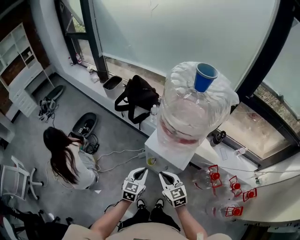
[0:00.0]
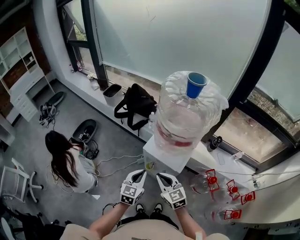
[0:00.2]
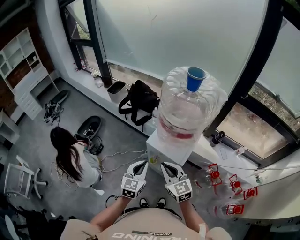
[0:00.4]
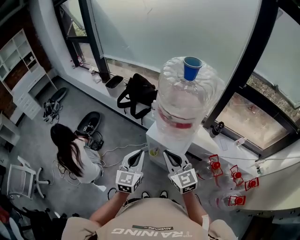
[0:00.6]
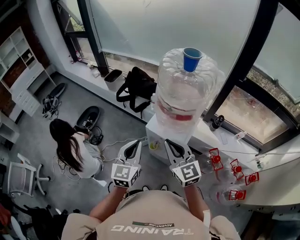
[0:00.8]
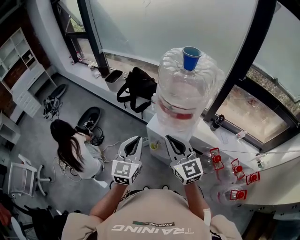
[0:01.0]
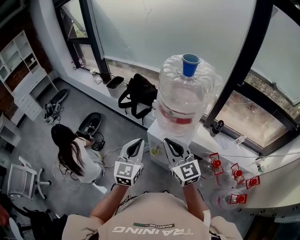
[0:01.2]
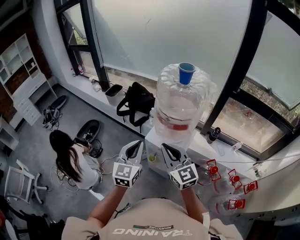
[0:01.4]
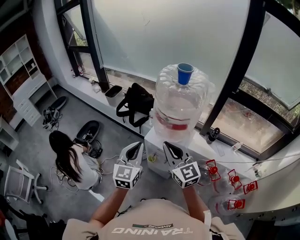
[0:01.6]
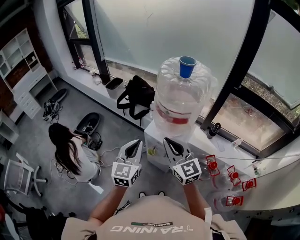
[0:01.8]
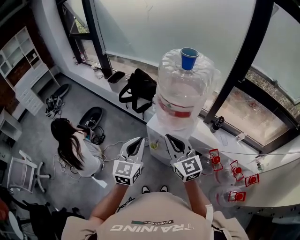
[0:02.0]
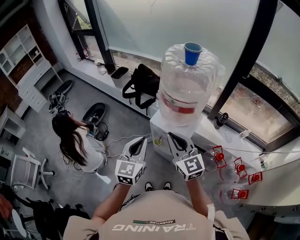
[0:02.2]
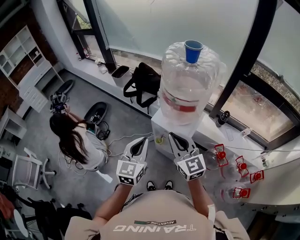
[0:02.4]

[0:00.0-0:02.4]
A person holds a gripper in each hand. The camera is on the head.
0:00.0 to 0:01.2: The two grippers go about 20 cm upward. The right gripper changes its angle by approximately 20 degrees. Meanwhile the left gripper swivels approximately 20 degrees.
0:01.2 to 0:02.4: The grippers stay close to where they were, moving slightly.

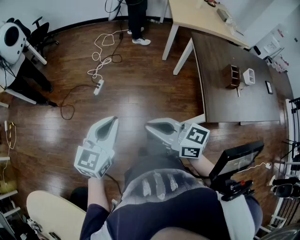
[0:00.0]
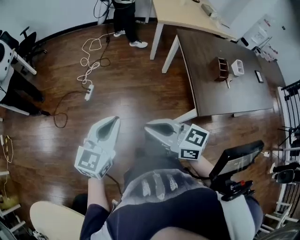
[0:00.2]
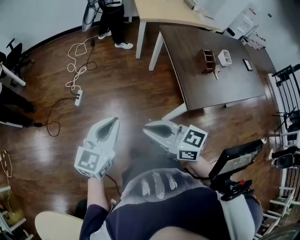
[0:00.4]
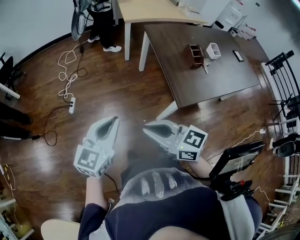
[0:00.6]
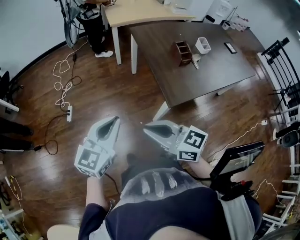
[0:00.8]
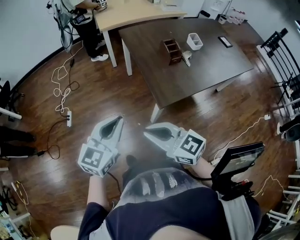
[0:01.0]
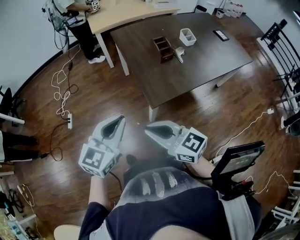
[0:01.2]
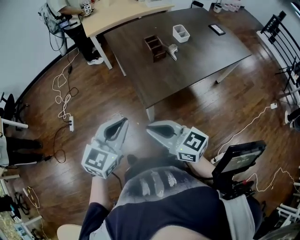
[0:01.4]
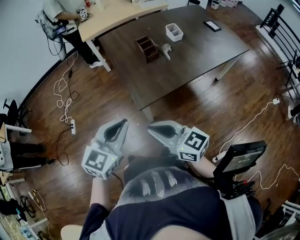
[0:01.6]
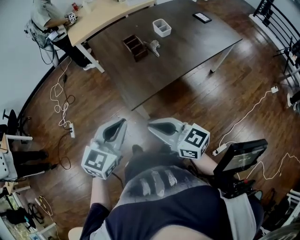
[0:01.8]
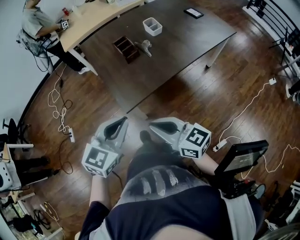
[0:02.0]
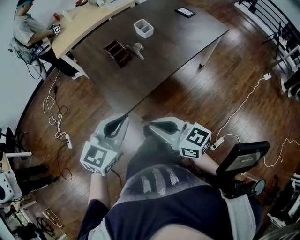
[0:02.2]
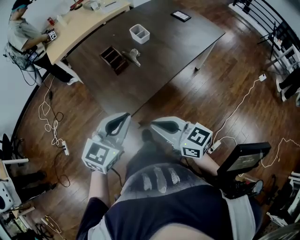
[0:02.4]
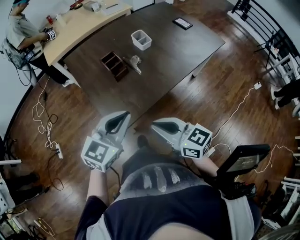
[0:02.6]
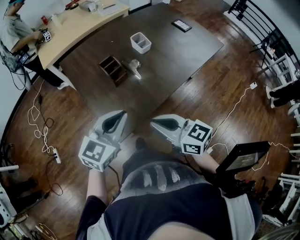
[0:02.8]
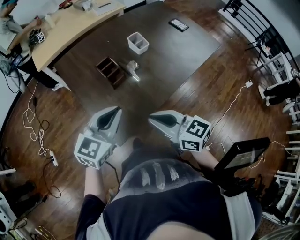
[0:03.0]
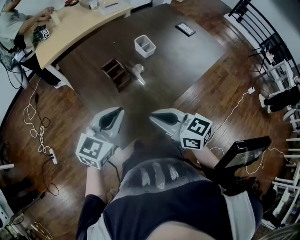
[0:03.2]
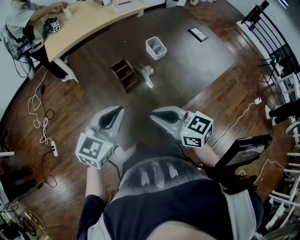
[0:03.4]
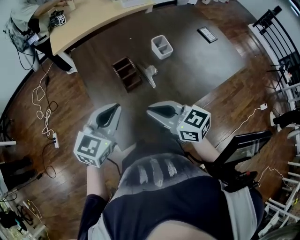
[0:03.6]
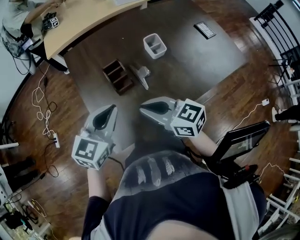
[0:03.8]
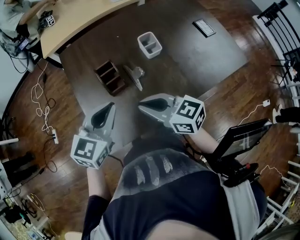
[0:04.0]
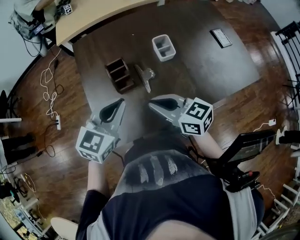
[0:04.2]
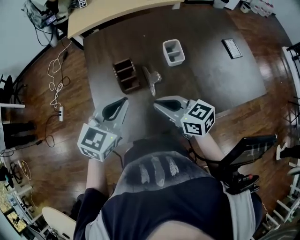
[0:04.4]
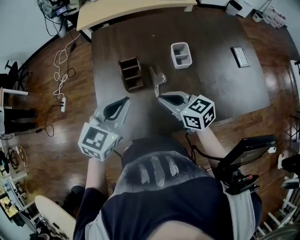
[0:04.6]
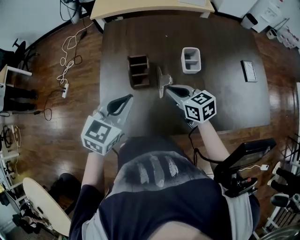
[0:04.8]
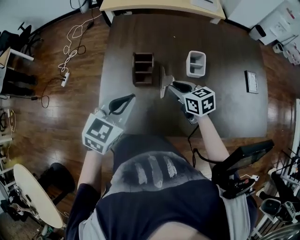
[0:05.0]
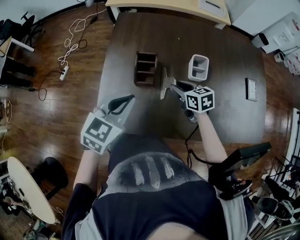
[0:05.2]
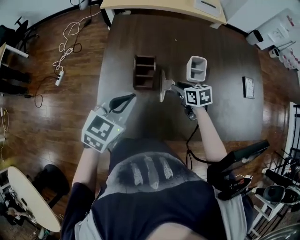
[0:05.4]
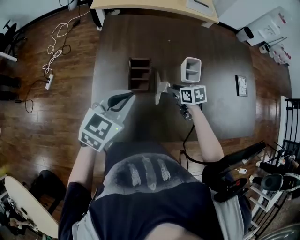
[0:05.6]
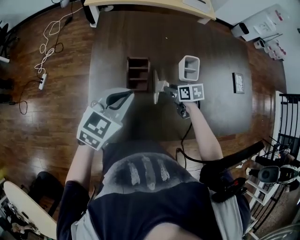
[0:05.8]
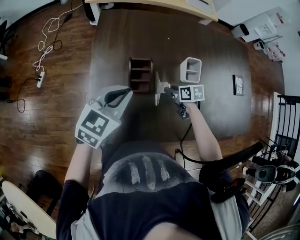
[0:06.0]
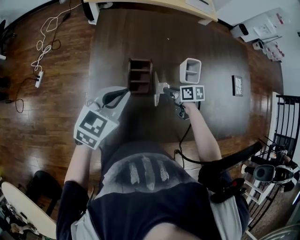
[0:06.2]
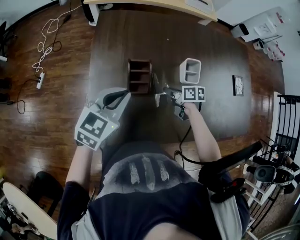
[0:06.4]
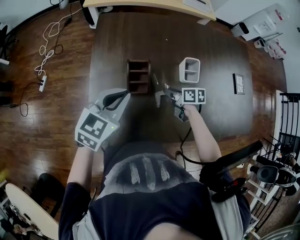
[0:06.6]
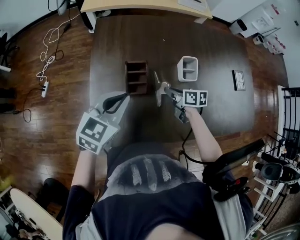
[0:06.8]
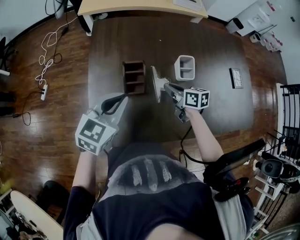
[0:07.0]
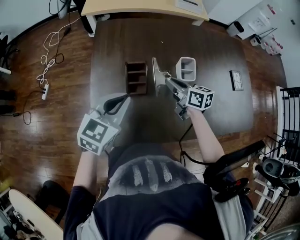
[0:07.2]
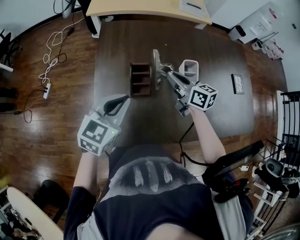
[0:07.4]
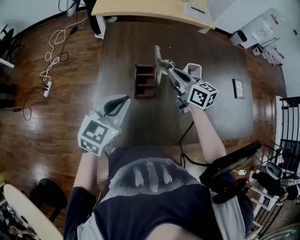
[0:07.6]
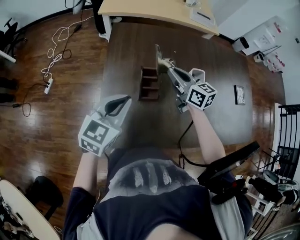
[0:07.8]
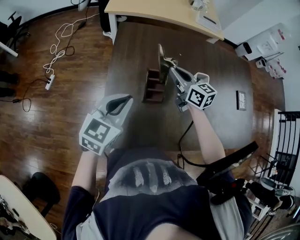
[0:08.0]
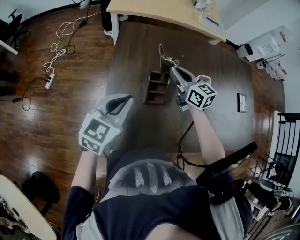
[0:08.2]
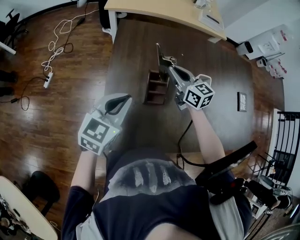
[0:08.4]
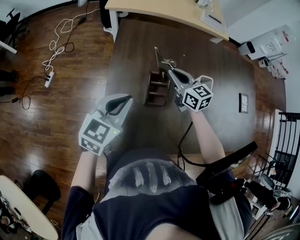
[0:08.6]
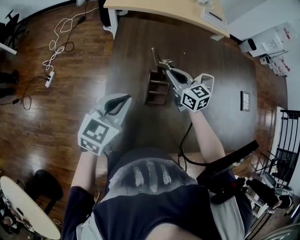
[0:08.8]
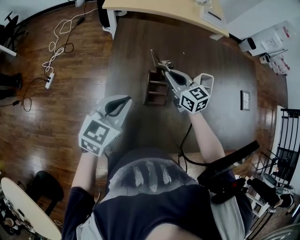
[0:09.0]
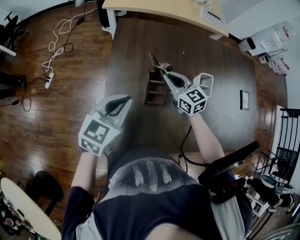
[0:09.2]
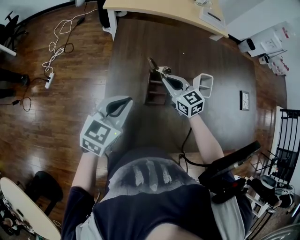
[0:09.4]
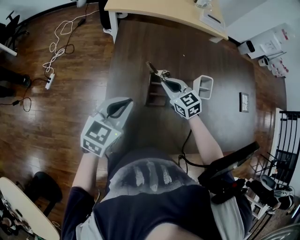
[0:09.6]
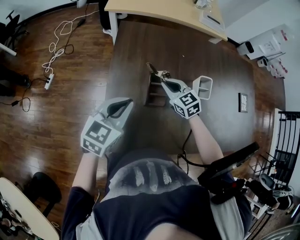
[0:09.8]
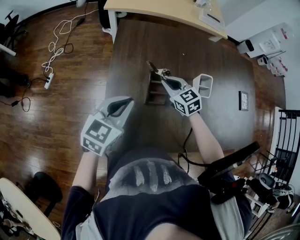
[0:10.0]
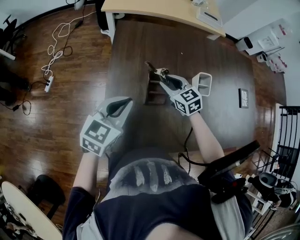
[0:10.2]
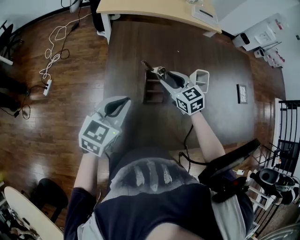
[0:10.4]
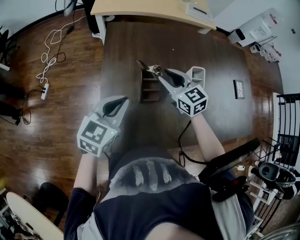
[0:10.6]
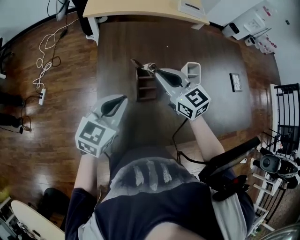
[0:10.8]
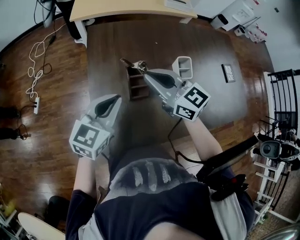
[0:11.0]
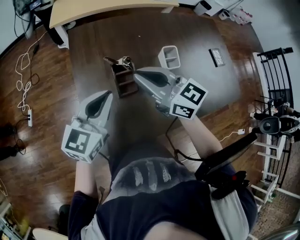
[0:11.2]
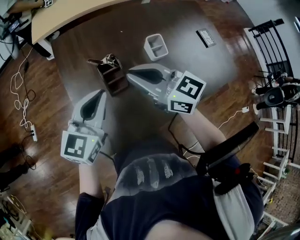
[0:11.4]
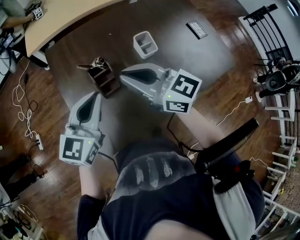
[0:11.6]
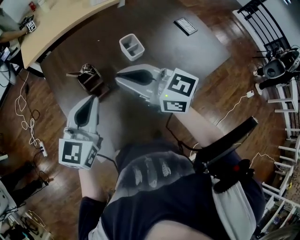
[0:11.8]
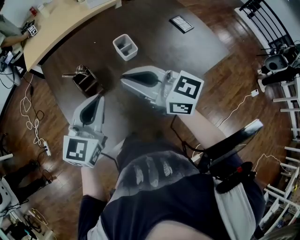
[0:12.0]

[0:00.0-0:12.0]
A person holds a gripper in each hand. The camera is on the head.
0:00.0 to 0:01.6: The two grippers travel together, about 40 cm. The left gripper changes its angle by roughly 30 degrees. Meanwhile the right gripper rotates roughly 30 degrees.
0:01.6 to 0:03.0: Both grippers travel together forward and to the right, roughly 25 cm.
0:03.0 to 0:04.4: The right gripper ends up roughly 20 cm from where it was, and turns by some 30 degrees; the left gripper ends up about 15 cm from where it was, and swivels approximately 30 degrees.
0:04.4 to 0:06.0: The right gripper shifts approximately 25 cm downward and forward, angles its fingers downward, by about 40 degrees, and opens its fingers, while the left gripper is displaced forward by about 10 cm.
0:06.0 to 0:07.6: The right gripper goes approximately 20 cm upward, tilts its fingers about 40 degrees upward, and closes its fingers.
0:07.6 to 0:09.0: The left gripper shifts by approximately 5 cm. Meanwhile the right gripper goes roughly 10 cm to the left and downward.
0:09.0 to 0:10.4: The right gripper opens.
0:10.4 to 0:12.0: The right gripper travels backward, upward and to the right by some 30 cm, tilts its fingers about 30 degrees upward, and closes; the left gripper shifts some 20 cm to the right, backward and upward, and rotates some 20 degrees.

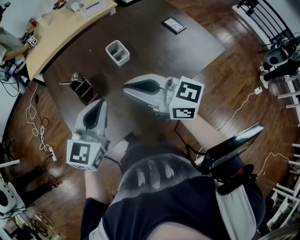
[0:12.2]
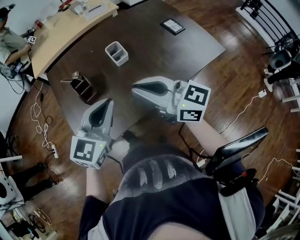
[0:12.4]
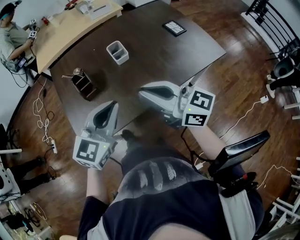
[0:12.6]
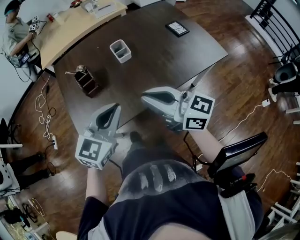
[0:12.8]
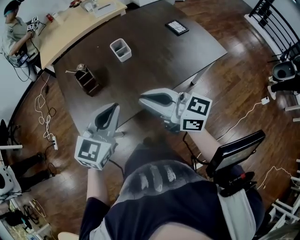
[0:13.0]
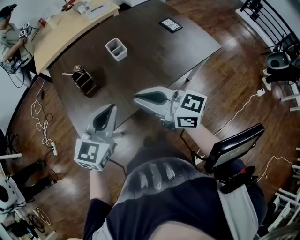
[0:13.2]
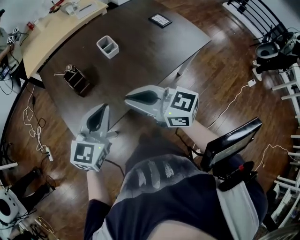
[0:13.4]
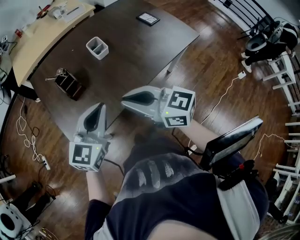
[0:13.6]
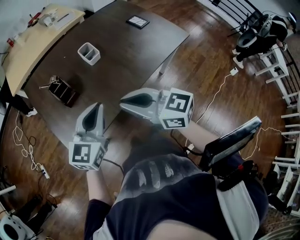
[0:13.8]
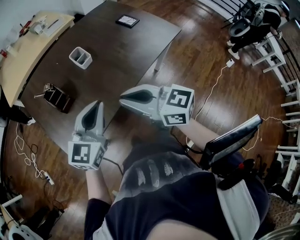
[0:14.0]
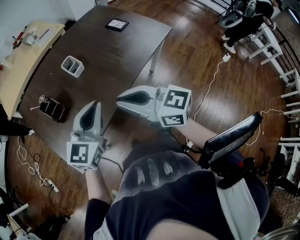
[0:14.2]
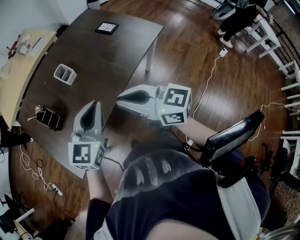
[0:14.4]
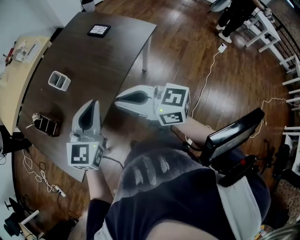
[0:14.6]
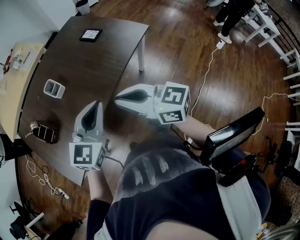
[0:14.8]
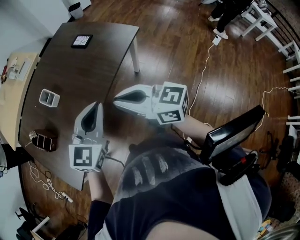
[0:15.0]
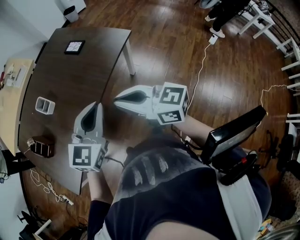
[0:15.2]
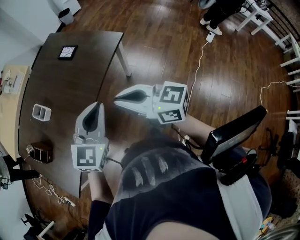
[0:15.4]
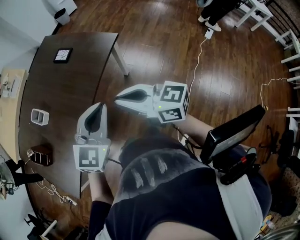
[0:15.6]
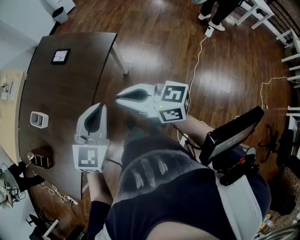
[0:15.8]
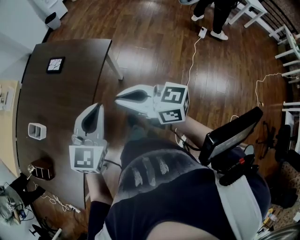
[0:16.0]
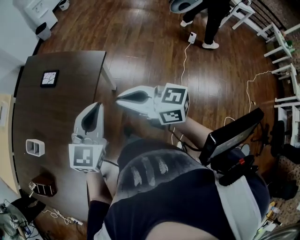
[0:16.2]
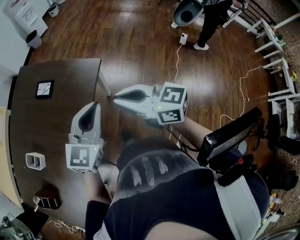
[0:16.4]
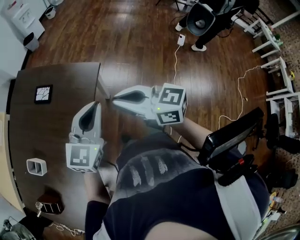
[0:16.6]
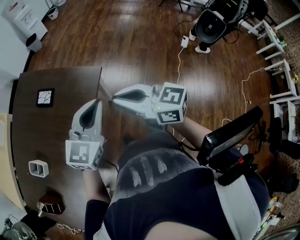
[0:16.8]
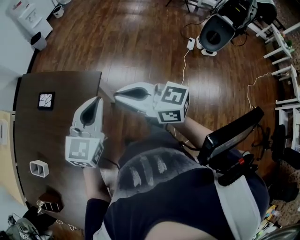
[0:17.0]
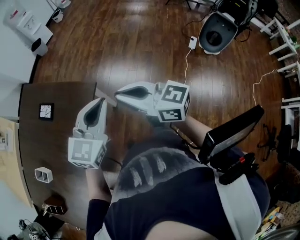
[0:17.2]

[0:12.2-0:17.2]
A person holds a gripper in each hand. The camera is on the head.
0:12.2 to 0:13.8: Both grippers move backward, some 10 cm.
0:13.8 to 0:15.6: Both grippers are carried to the right, approximately 40 cm. The right gripper turns by roughly 20 degrees. Meanwhile the left gripper turns by roughly 30 degrees.
0:15.6 to 0:17.2: Both grippers travel together forward and to the right, about 30 cm.

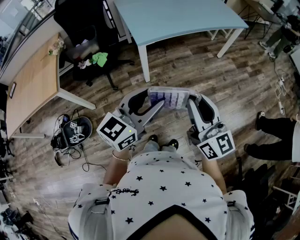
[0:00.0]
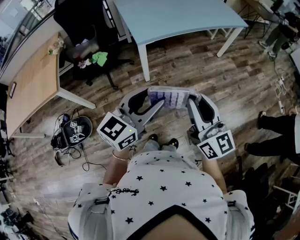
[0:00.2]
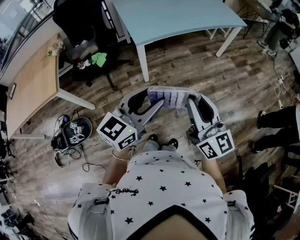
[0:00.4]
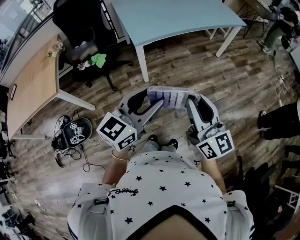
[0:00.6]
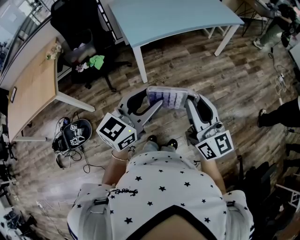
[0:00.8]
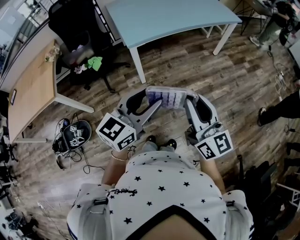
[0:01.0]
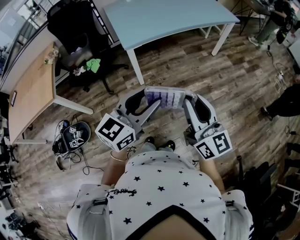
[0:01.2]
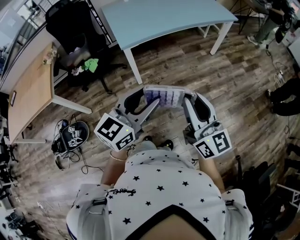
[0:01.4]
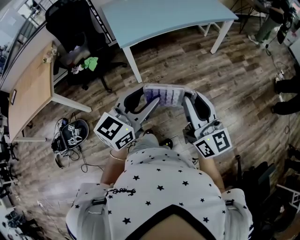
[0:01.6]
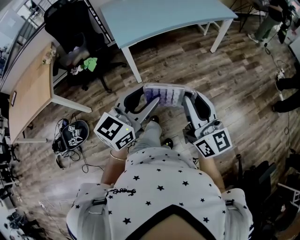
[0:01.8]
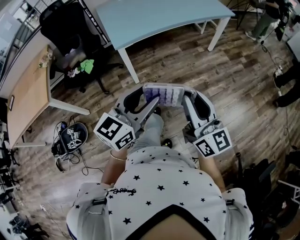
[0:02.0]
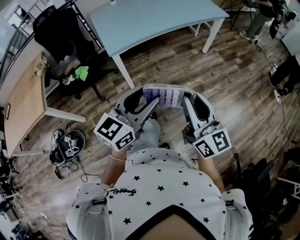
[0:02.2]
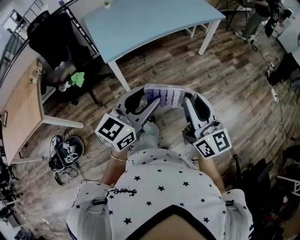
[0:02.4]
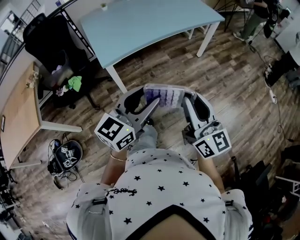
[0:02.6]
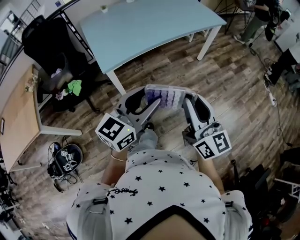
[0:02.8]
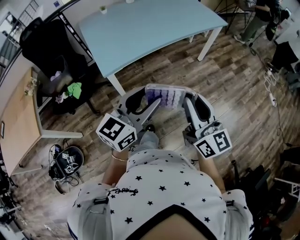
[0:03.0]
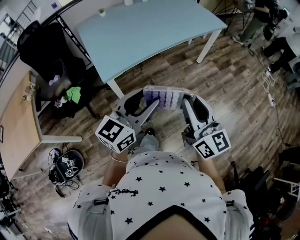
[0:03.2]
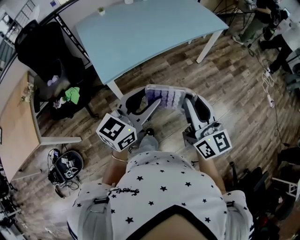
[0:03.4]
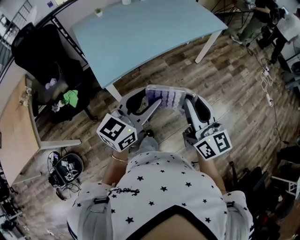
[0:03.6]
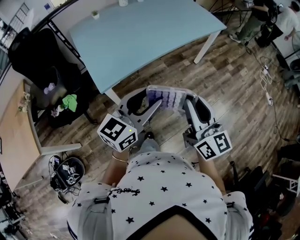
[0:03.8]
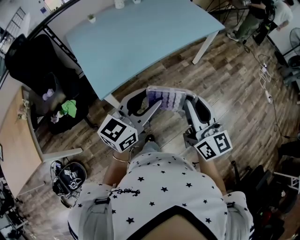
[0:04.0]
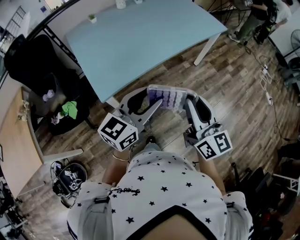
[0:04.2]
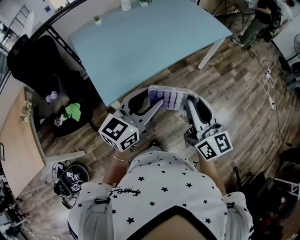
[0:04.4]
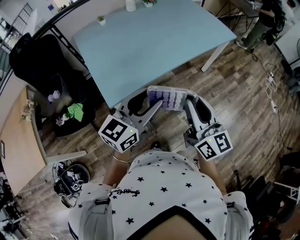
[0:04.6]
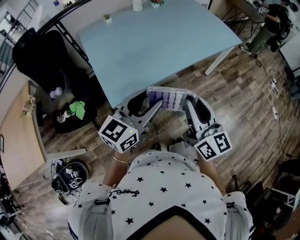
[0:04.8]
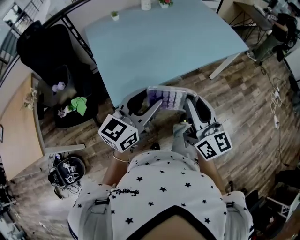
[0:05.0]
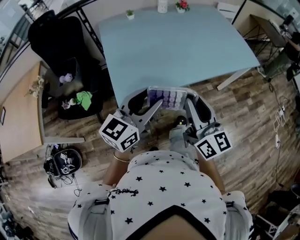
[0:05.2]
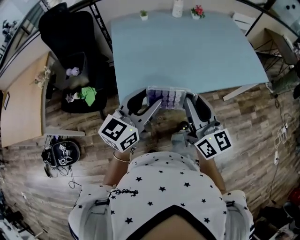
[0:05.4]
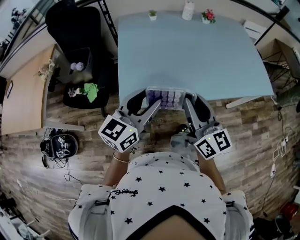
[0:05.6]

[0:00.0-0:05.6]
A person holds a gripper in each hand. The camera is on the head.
0:00.0 to 0:01.4: Both grippers move to the right, roughly 10 cm.
0:01.4 to 0:02.8: The grippers both shift forward by roughly 15 cm.
0:02.8 to 0:04.2: Both grippers travel together forward, about 15 cm.
0:04.2 to 0:05.6: The left gripper changes place by about 20 cm, and rotates approximately 30 degrees; the right gripper changes place by approximately 25 cm, and swivels roughly 30 degrees.
